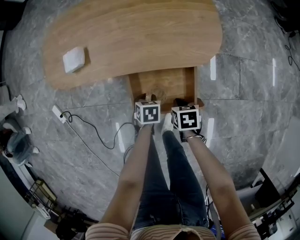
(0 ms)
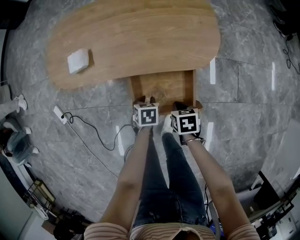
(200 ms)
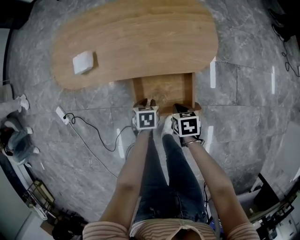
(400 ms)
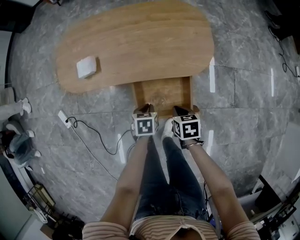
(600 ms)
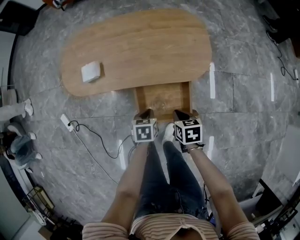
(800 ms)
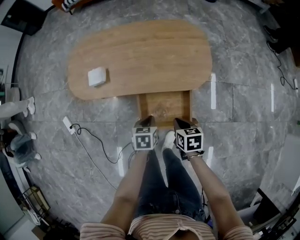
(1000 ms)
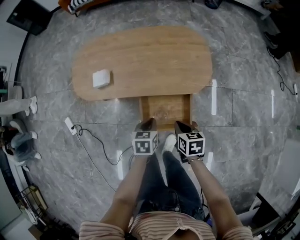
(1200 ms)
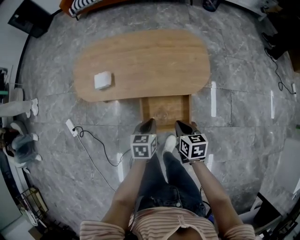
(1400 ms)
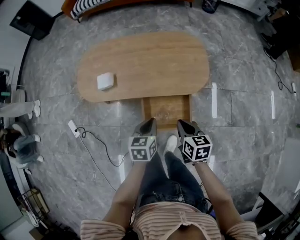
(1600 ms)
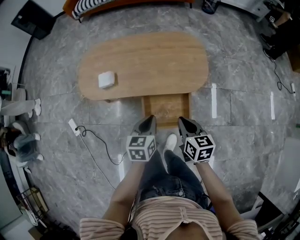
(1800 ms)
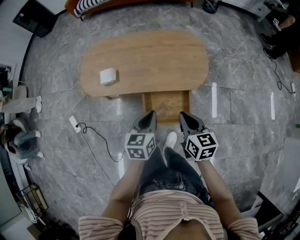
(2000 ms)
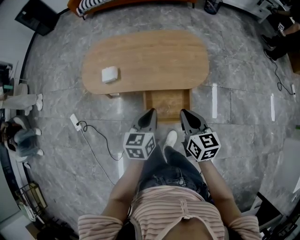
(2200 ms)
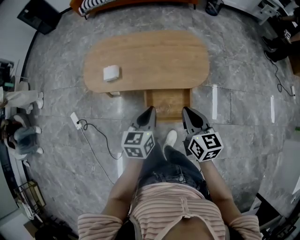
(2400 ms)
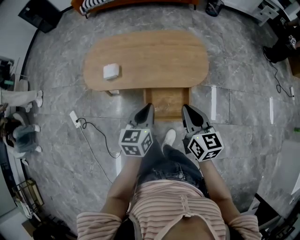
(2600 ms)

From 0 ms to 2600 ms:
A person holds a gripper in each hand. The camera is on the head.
From 0 ms to 1200 ms: Both grippers move upward, about 20 cm. The left gripper closes up.
From 1200 ms to 2600 ms: Both grippers travel together upward, approximately 20 cm. The right gripper tips its fingers upward by approximately 30 degrees; the left gripper turns by about 30 degrees.

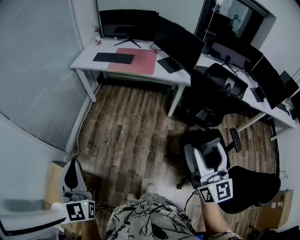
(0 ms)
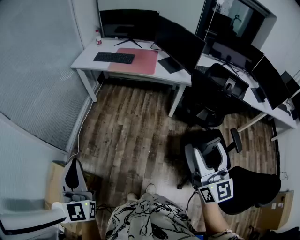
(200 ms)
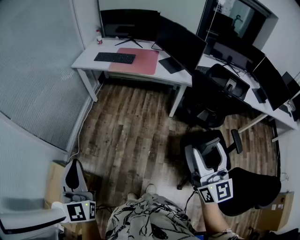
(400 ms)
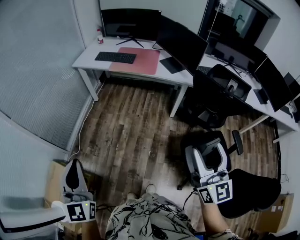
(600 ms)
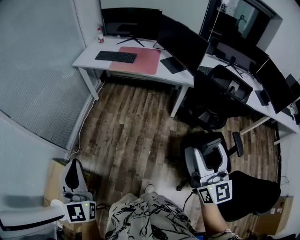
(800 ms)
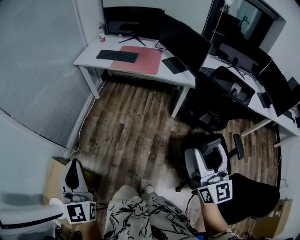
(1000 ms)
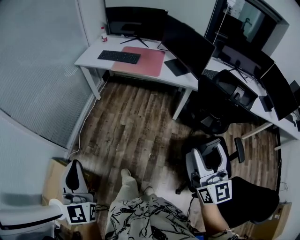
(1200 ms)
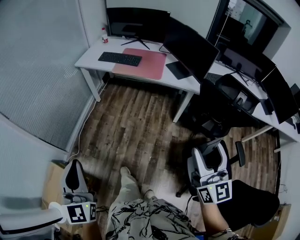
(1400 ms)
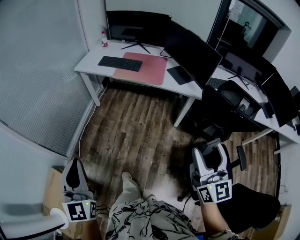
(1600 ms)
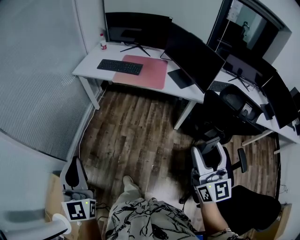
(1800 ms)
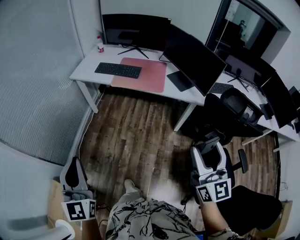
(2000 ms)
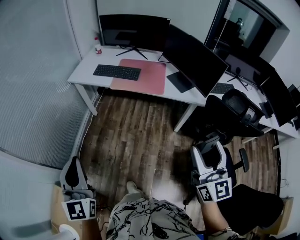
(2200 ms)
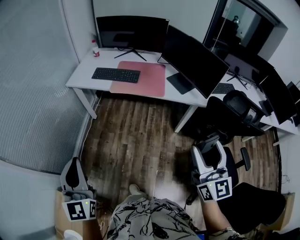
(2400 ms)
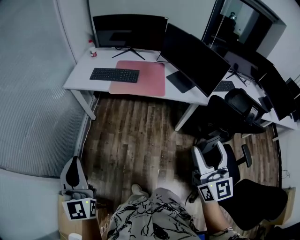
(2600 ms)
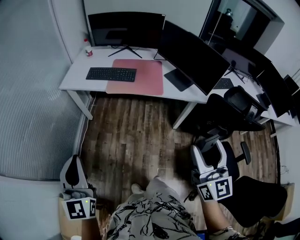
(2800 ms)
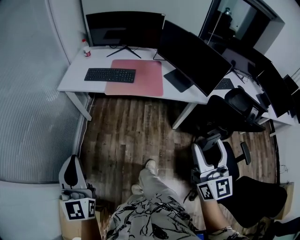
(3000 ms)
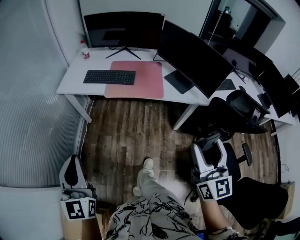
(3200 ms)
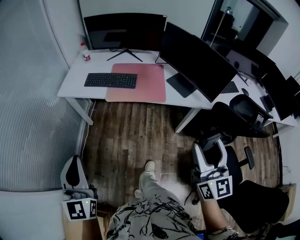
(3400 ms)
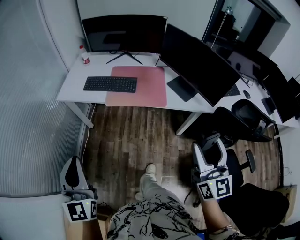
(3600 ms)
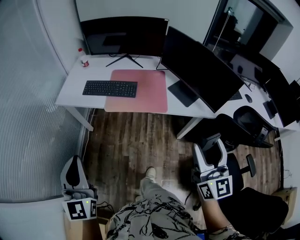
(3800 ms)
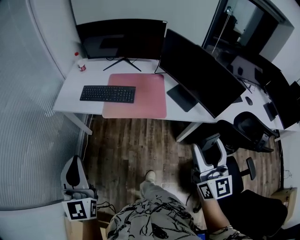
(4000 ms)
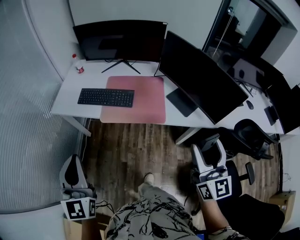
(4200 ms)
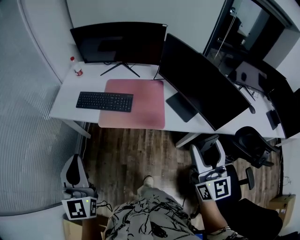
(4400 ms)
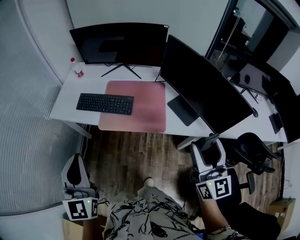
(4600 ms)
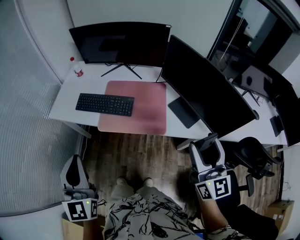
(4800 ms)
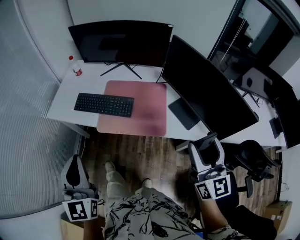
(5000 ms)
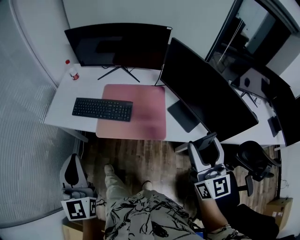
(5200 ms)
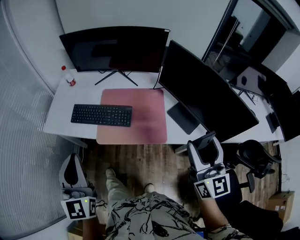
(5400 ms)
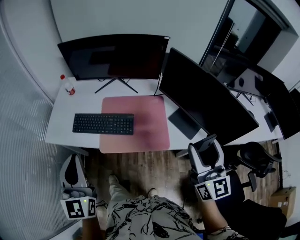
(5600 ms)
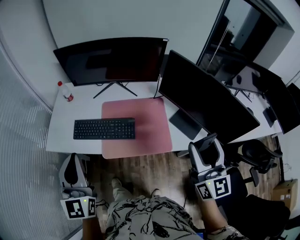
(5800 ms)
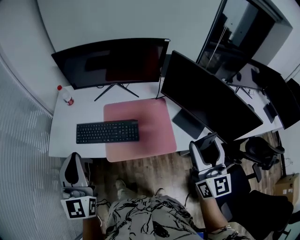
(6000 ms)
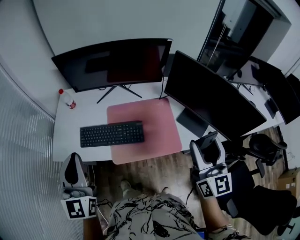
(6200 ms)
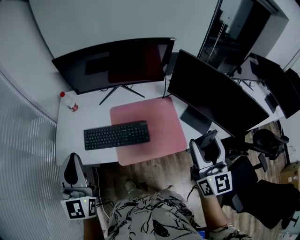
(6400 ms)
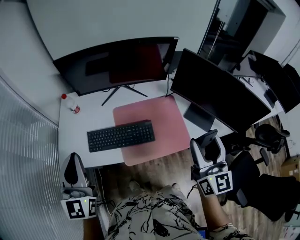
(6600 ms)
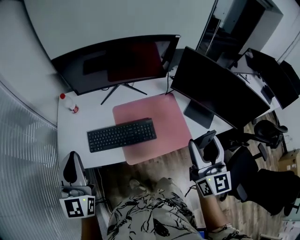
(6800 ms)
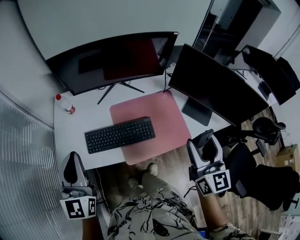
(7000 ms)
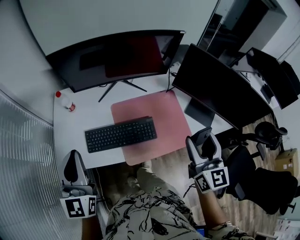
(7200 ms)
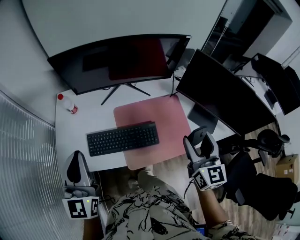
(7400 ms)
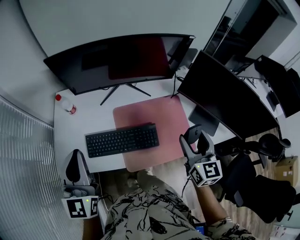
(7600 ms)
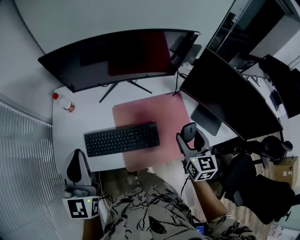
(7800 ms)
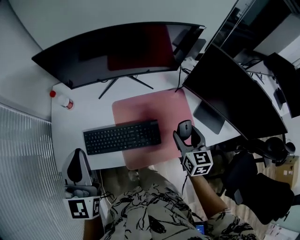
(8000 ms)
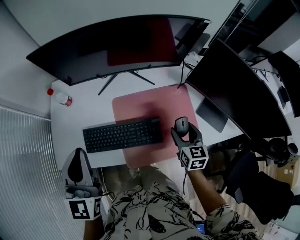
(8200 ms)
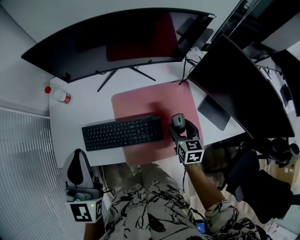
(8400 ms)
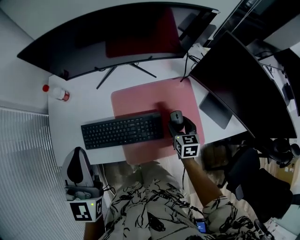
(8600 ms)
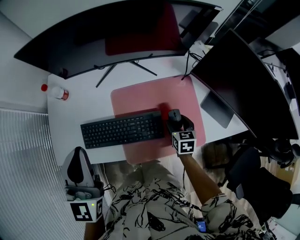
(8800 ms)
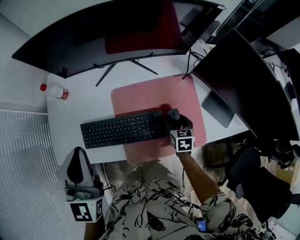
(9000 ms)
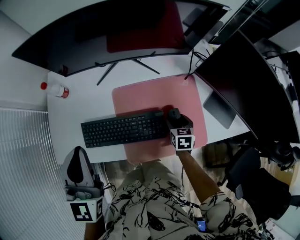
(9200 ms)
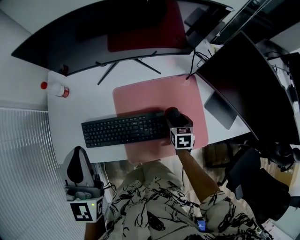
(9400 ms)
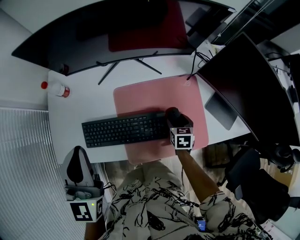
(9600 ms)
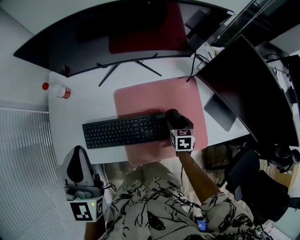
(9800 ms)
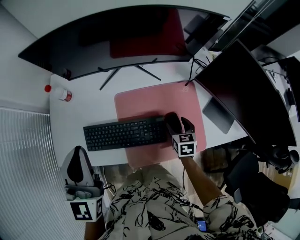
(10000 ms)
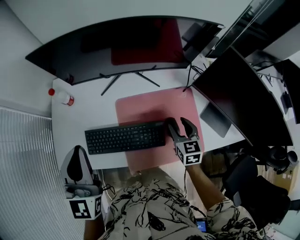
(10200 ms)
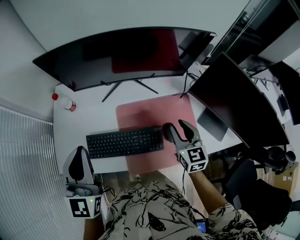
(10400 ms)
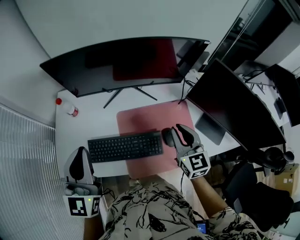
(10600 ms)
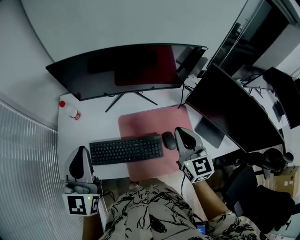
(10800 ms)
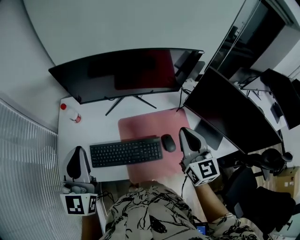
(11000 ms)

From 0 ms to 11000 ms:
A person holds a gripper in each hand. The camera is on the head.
From 0 ms to 1600 ms: The grippers both shift forward by some 15 cm.
From 1600 ms to 3200 ms: The left gripper moves forward, roughly 25 cm. Meanwhile the right gripper is displaced forward and to the left by roughly 20 cm.
From 3200 ms to 4800 ms: Both grippers travel together forward, roughly 30 cm.
From 4800 ms to 6200 ms: The right gripper is displaced forward and to the left by approximately 15 cm; the left gripper moves forward and to the left, some 25 cm.
From 6200 ms to 7800 ms: The right gripper moves downward, forward and to the left, roughly 25 cm, and swivels some 30 degrees; the left gripper heads forward and to the left, covering approximately 15 cm.
From 7800 ms to 9400 ms: The right gripper travels downward by some 25 cm, and points its fingers approximately 30 degrees further downward. The left gripper changes place by approximately 5 cm.
From 9400 ms to 11000 ms: The right gripper travels upward by approximately 35 cm, angles its fingers upward, by approximately 50 degrees, and closes its fingers. Meanwhile the left gripper travels upward by about 5 cm.

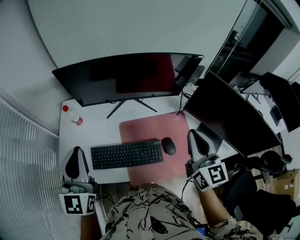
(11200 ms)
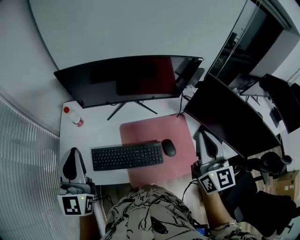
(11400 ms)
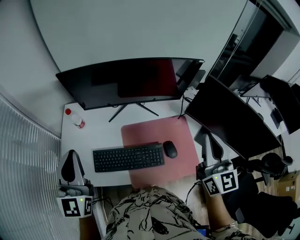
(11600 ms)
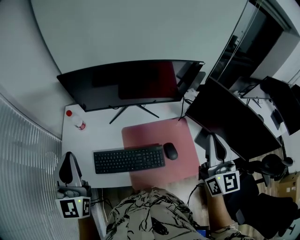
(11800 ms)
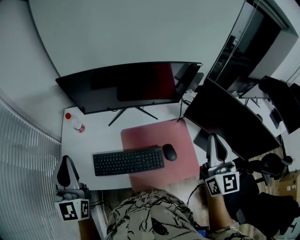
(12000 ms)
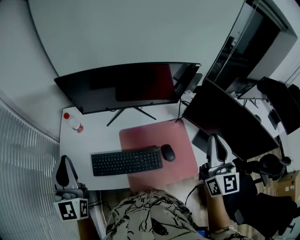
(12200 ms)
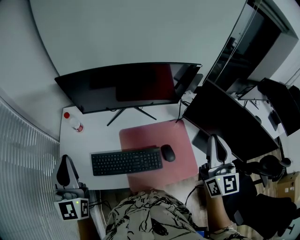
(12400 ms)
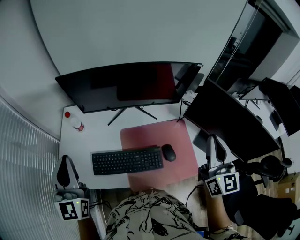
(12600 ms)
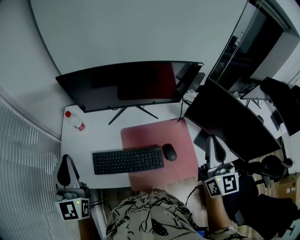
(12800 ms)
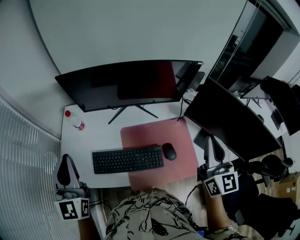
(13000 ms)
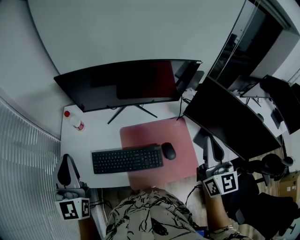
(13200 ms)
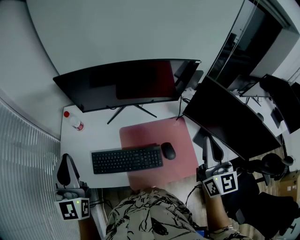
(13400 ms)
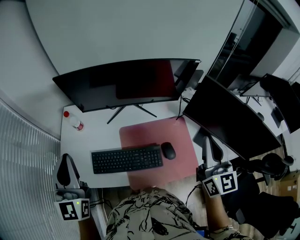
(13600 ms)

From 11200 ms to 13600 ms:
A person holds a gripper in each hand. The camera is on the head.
From 11200 ms to 12400 ms: The left gripper shifts roughly 5 cm to the left; the right gripper heads to the right and upward, covering approximately 10 cm.
From 12400 ms to 13600 ms: There are only small adjustments of the grippers.

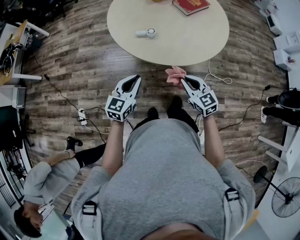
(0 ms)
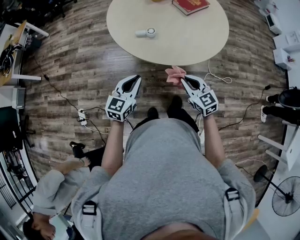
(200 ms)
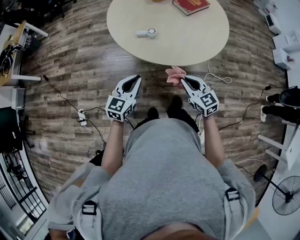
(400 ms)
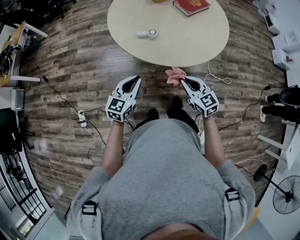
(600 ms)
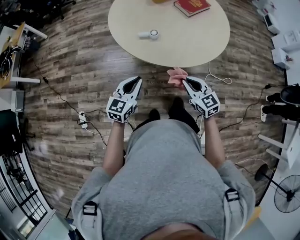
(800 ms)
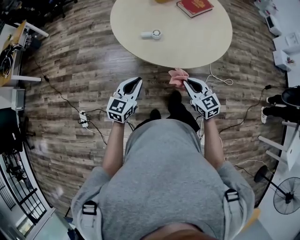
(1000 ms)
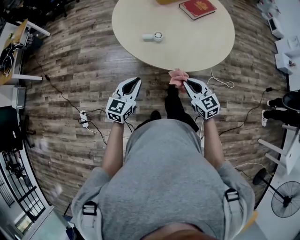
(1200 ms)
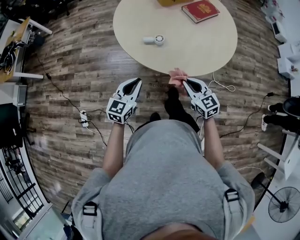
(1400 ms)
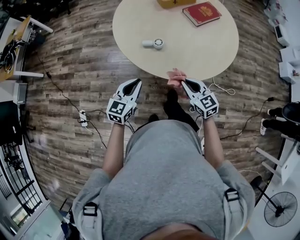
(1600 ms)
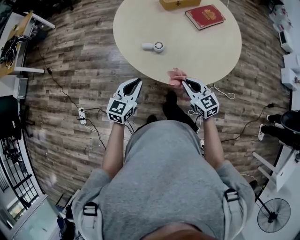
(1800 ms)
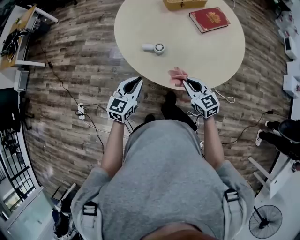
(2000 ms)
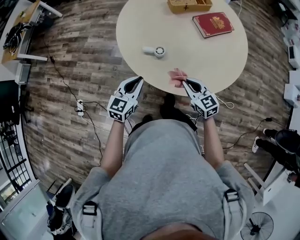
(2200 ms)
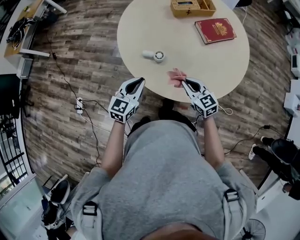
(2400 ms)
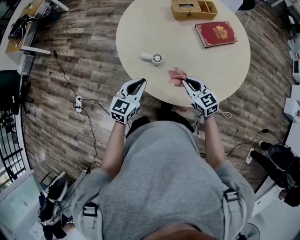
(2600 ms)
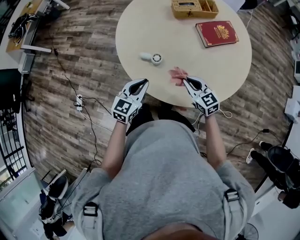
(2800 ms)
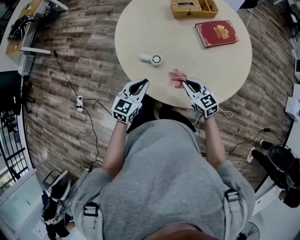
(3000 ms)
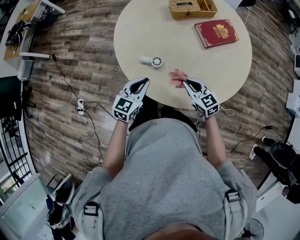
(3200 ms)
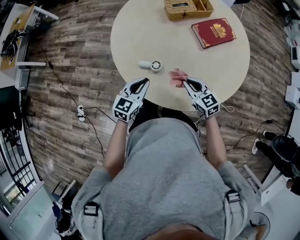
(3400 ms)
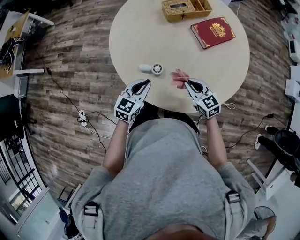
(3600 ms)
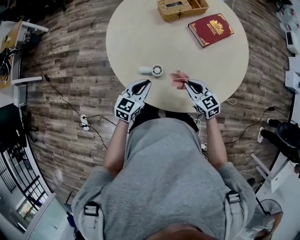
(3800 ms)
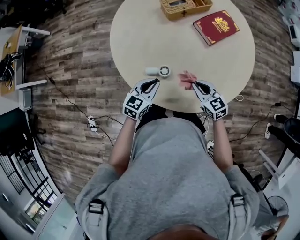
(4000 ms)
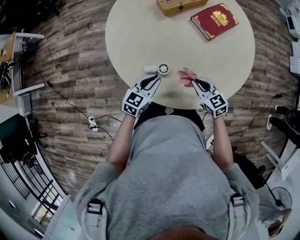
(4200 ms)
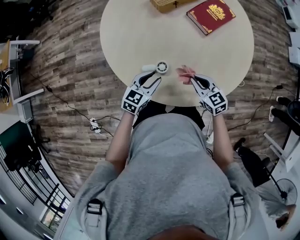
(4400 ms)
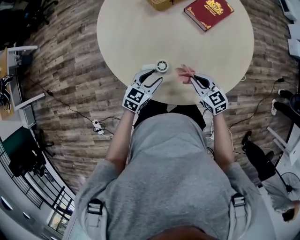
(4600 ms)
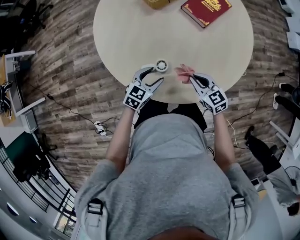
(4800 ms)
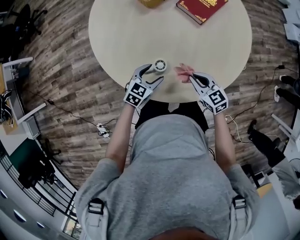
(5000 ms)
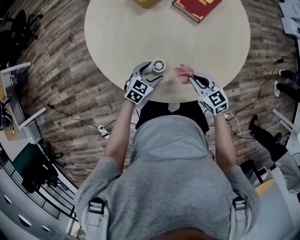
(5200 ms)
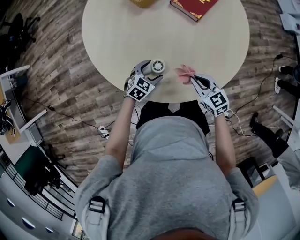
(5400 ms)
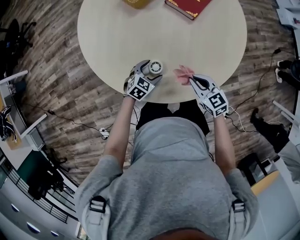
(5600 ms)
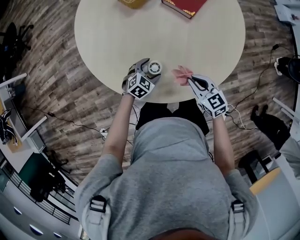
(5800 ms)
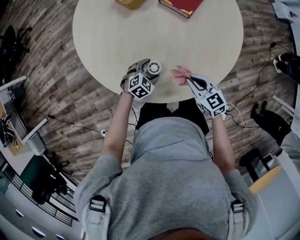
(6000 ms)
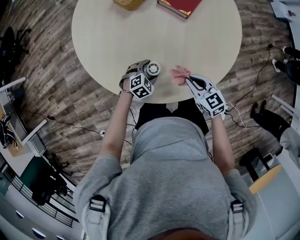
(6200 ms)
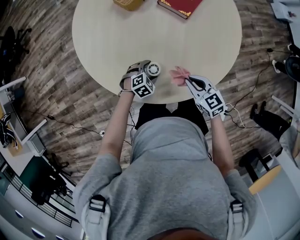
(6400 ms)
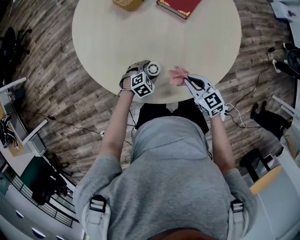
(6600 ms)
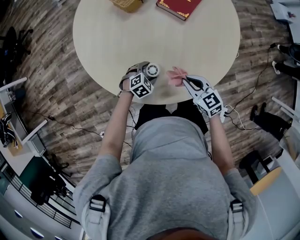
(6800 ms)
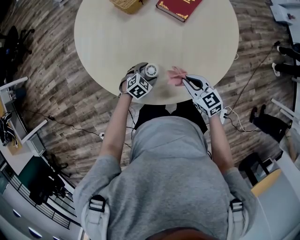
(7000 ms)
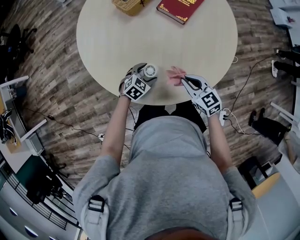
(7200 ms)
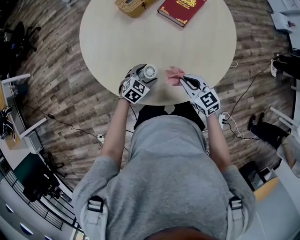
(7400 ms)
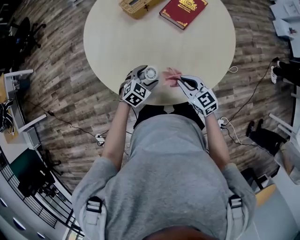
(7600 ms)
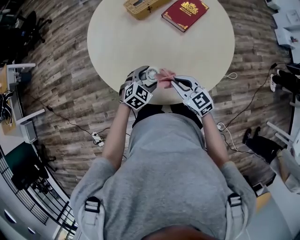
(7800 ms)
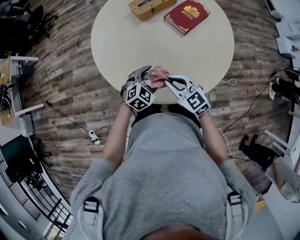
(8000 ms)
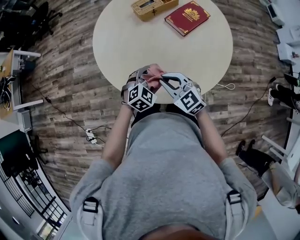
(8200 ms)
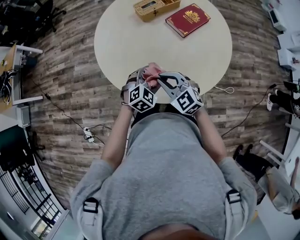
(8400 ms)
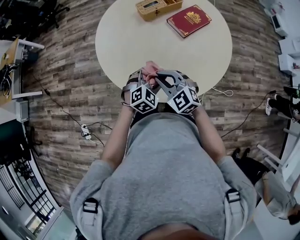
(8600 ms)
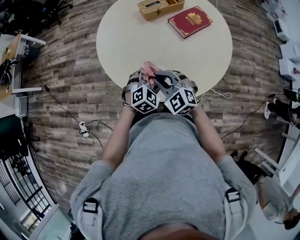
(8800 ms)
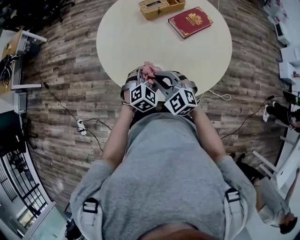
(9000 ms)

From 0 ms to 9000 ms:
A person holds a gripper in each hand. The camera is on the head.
From 0 ms to 1600 ms: Both grippers travel together forward, approximately 10 cm.
From 1600 ms to 3000 ms: Both grippers travel together forward and to the right, approximately 20 cm.
From 3000 ms to 4400 ms: The left gripper shifts some 15 cm forward and downward, and rotates some 30 degrees; the right gripper goes roughly 5 cm forward, and swivels roughly 20 degrees.
From 4400 ms to 6000 ms: The left gripper heads downward, covering about 15 cm, turns by some 50 degrees, and opens its fingers.
From 6000 ms to 7600 ms: The right gripper goes approximately 5 cm upward. The left gripper heads upward, covering about 10 cm.
From 7600 ms to 9000 ms: The grippers both shift upward by about 10 cm. The left gripper turns by approximately 30 degrees. Meanwhile the right gripper rotates around the line of its fingers by about 40 degrees, counterclockwise from behind.
